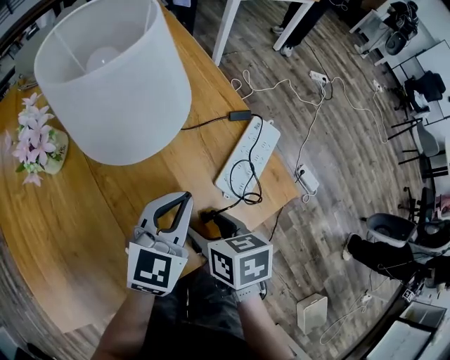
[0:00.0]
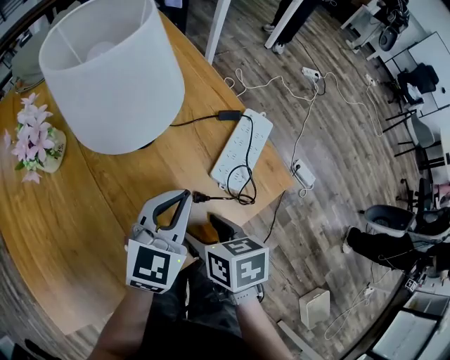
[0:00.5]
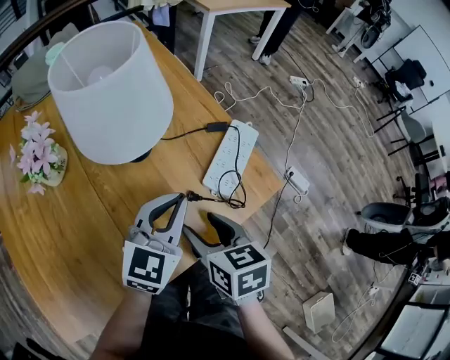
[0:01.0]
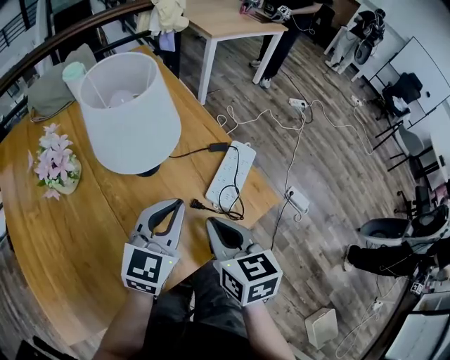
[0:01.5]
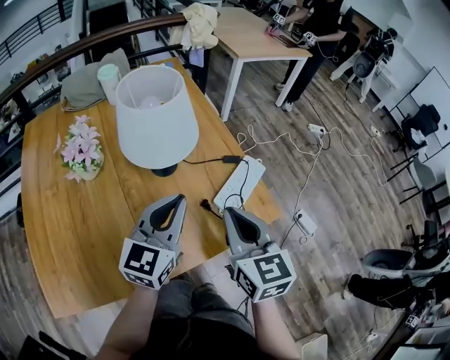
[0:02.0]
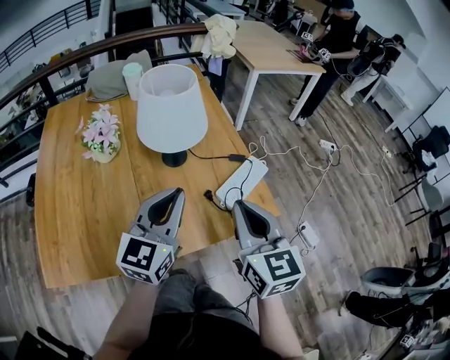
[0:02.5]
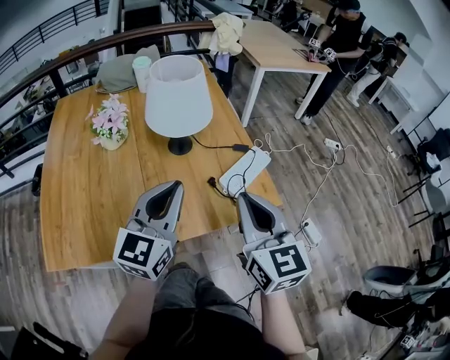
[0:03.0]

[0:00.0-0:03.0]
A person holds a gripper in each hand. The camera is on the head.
0:00.0 to 0:01.5: The right gripper shifts some 10 cm upward, swivels some 30 degrees, and closes. Meanwhile the left gripper goes roughly 5 cm upward.
0:01.5 to 0:03.0: Both grippers travel together upward and backward, some 15 cm. The right gripper rotates roughly 30 degrees. The left gripper swivels approximately 20 degrees.

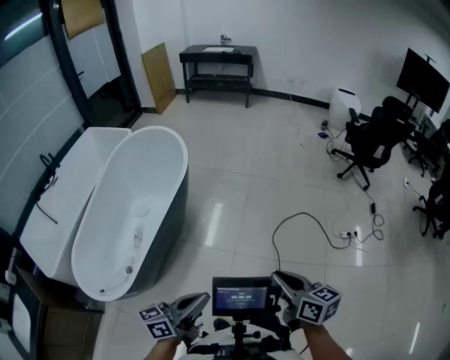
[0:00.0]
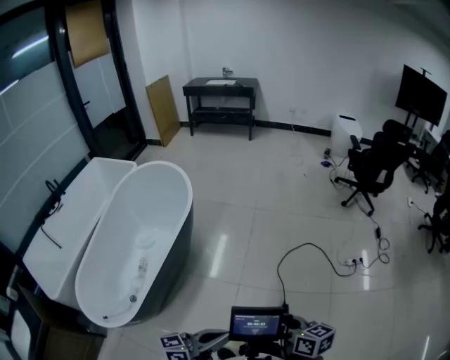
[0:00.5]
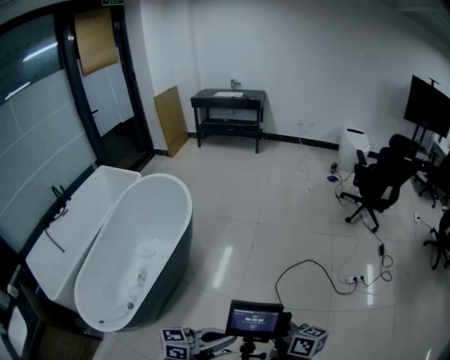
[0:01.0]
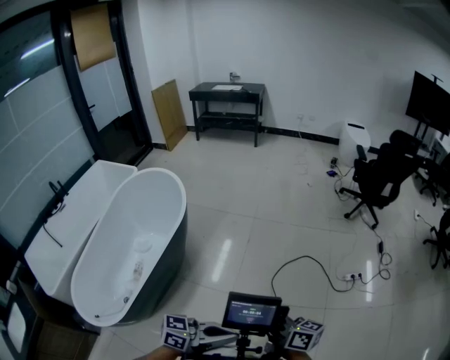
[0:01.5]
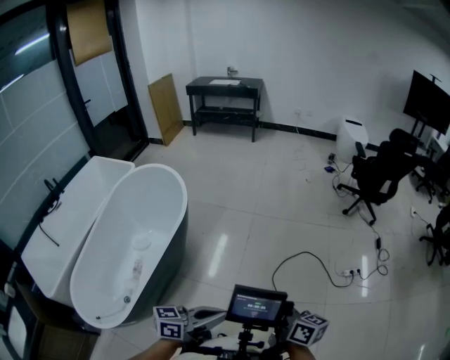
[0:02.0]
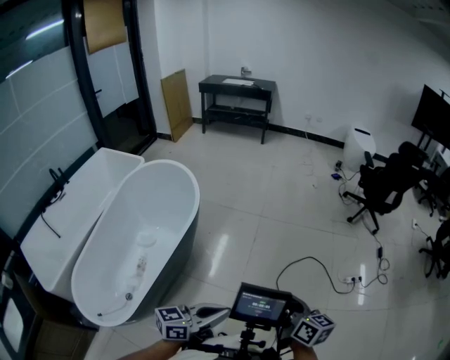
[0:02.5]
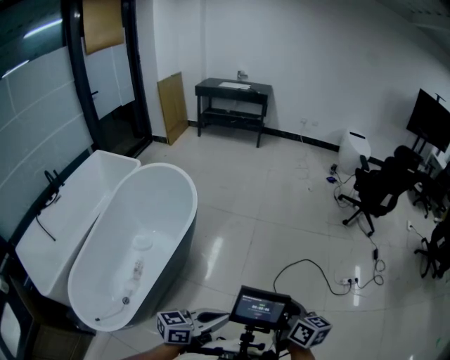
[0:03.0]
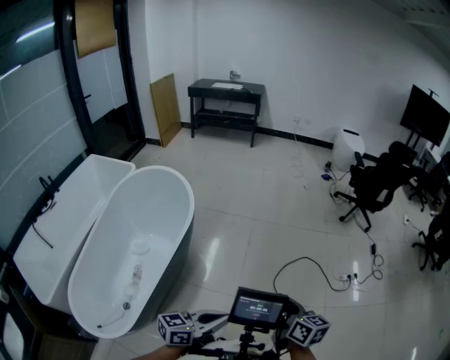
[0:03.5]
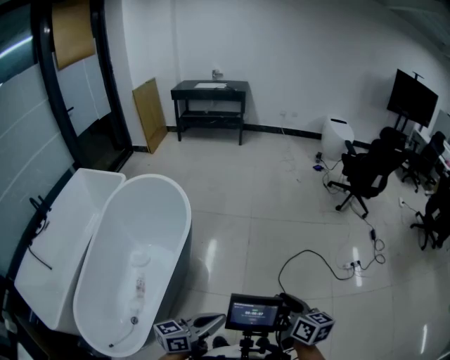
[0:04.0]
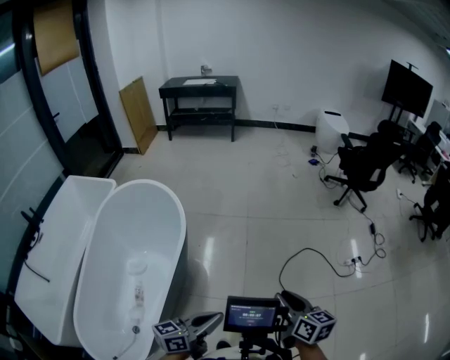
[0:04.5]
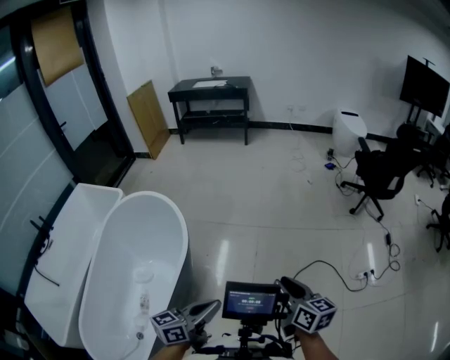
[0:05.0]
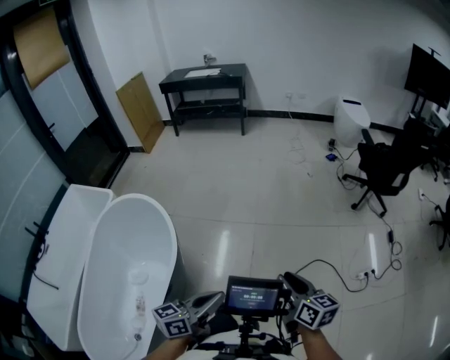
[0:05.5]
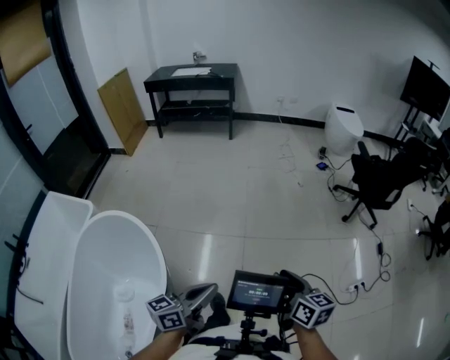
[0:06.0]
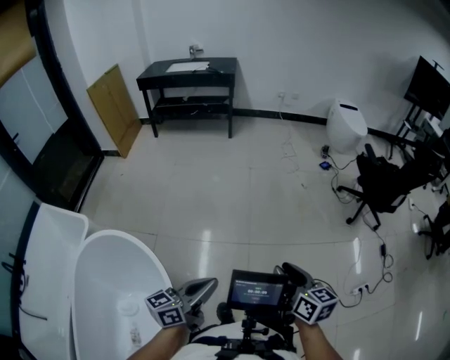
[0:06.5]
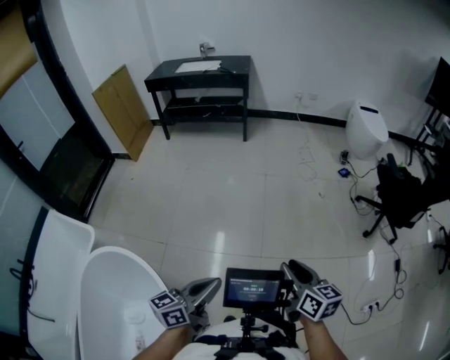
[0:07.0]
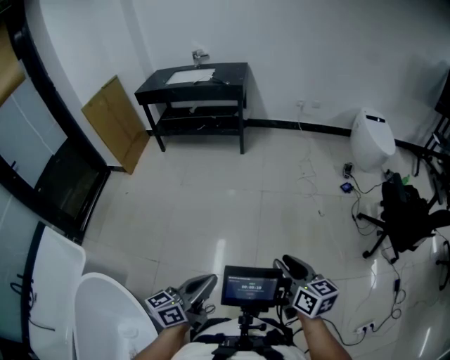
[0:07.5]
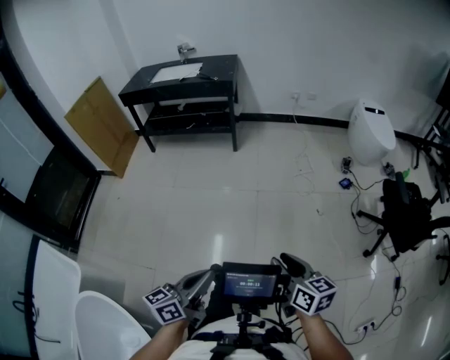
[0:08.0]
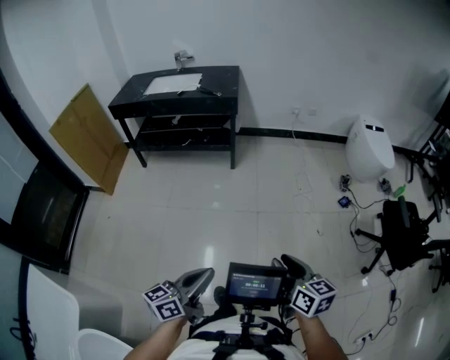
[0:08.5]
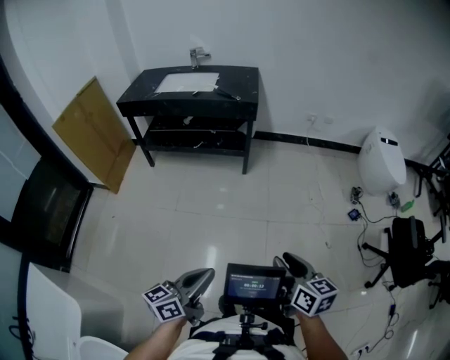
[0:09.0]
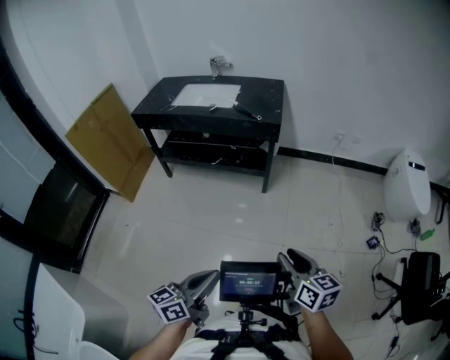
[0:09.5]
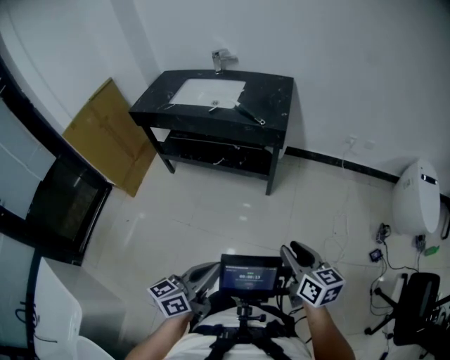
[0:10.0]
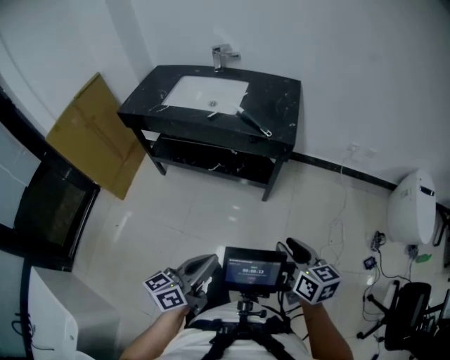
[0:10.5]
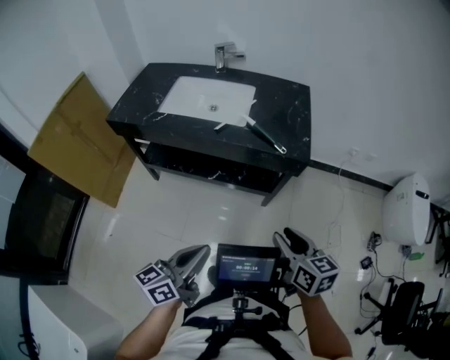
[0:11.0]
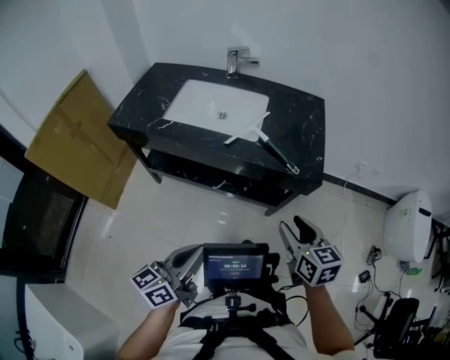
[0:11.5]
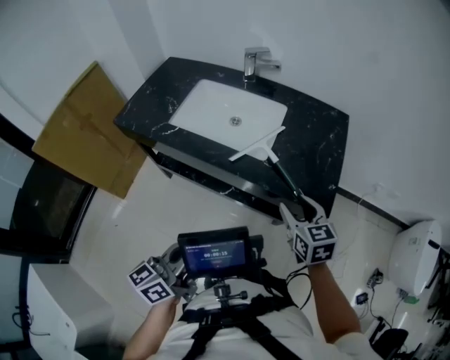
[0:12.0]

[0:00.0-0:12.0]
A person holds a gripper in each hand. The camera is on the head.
0:00.0 to 0:02.0: The right gripper moves approximately 10 cm. The left gripper changes place by about 15 cm.
0:02.0 to 0:04.0: The right gripper travels to the left by some 10 cm, changes its angle by roughly 20 degrees, and opens up; the left gripper goes some 15 cm to the left.
0:04.0 to 0:06.0: The pair of grippers is taken forward, about 50 cm.
0:06.0 to 0:08.0: The two grippers travel together, forward, about 60 cm.
0:08.0 to 0:10.0: The two grippers travel together, forward, roughly 60 cm.
0:10.0 to 0:12.0: Both grippers are carried forward, roughly 50 cm. The right gripper rotates some 30 degrees.

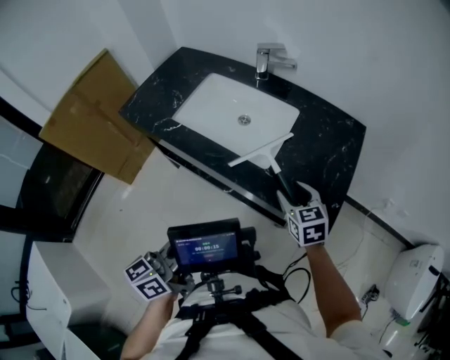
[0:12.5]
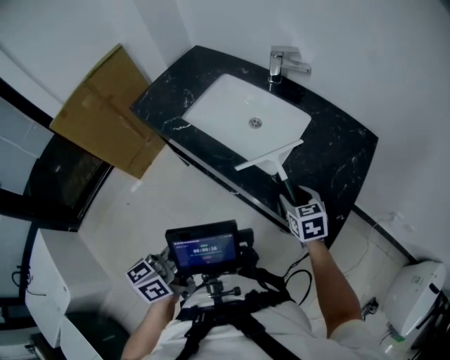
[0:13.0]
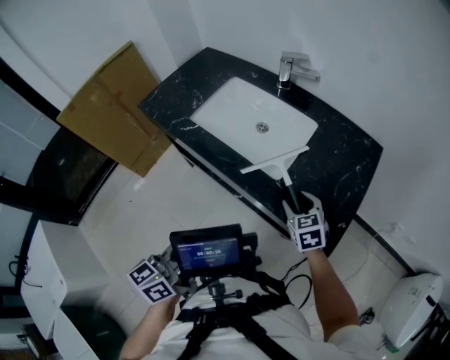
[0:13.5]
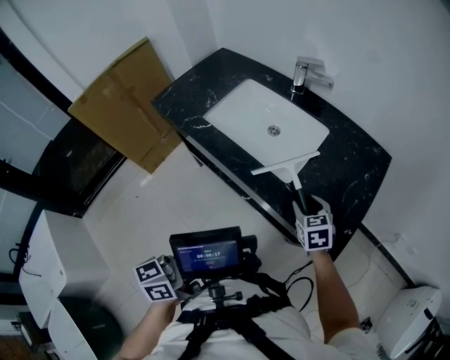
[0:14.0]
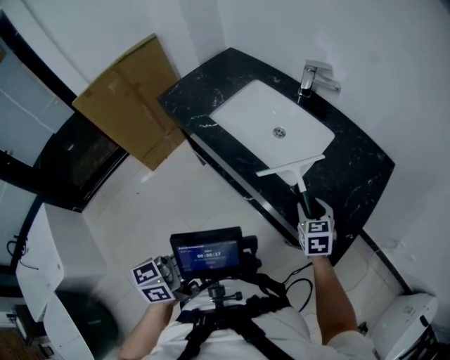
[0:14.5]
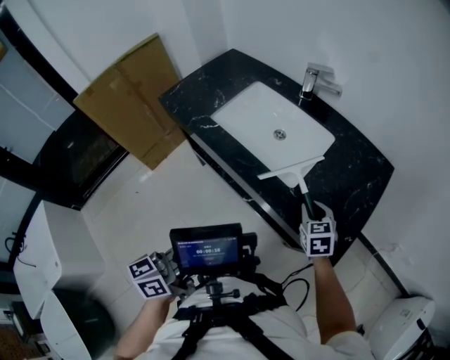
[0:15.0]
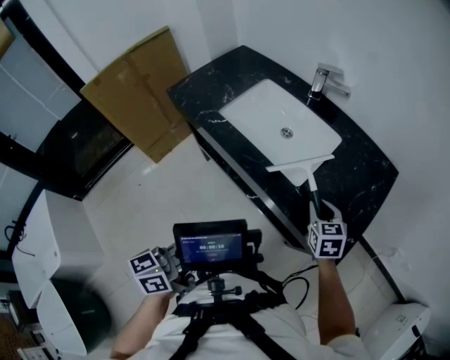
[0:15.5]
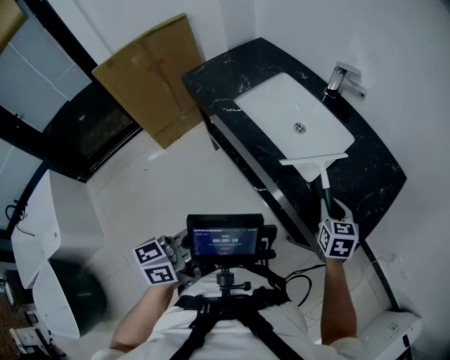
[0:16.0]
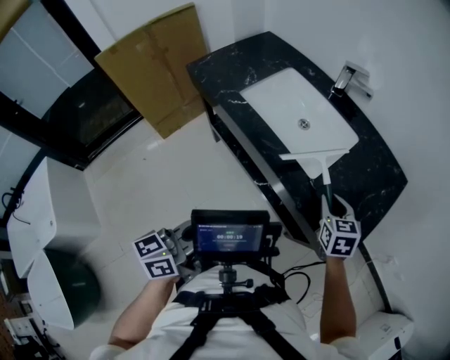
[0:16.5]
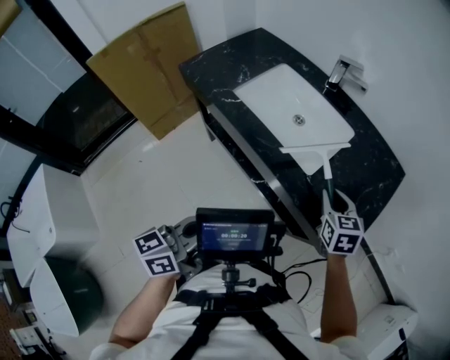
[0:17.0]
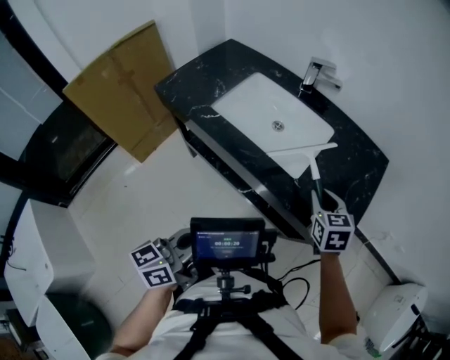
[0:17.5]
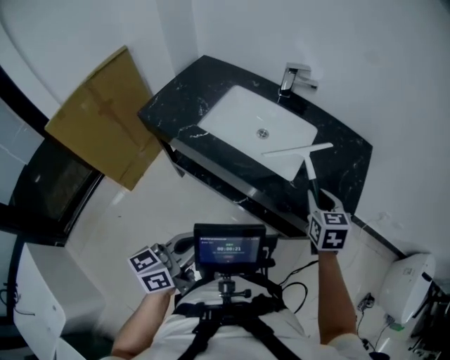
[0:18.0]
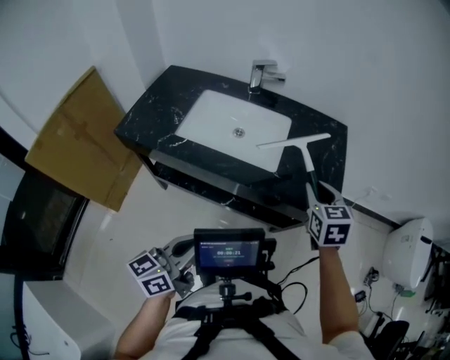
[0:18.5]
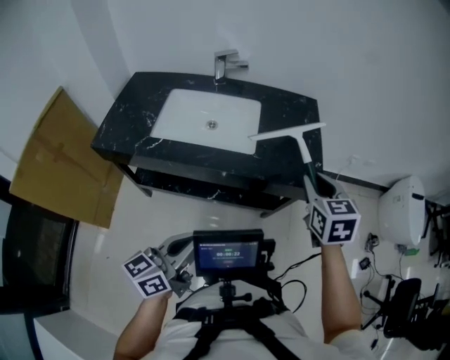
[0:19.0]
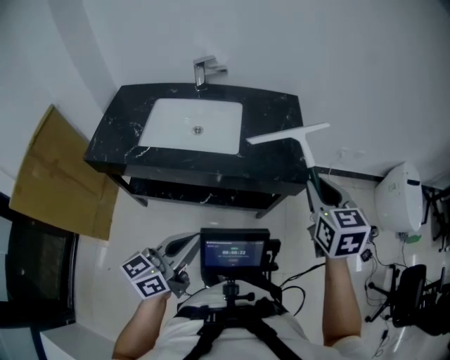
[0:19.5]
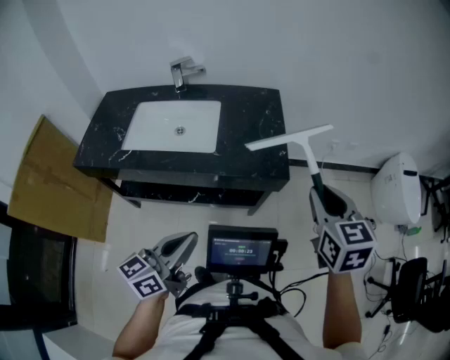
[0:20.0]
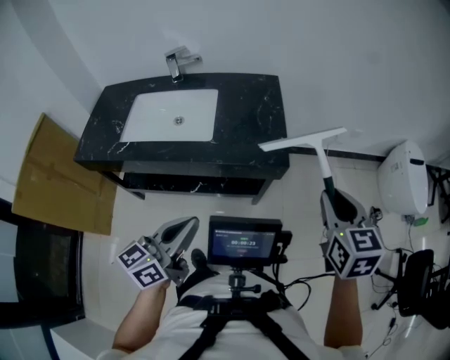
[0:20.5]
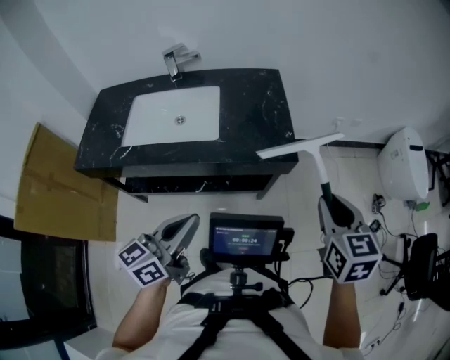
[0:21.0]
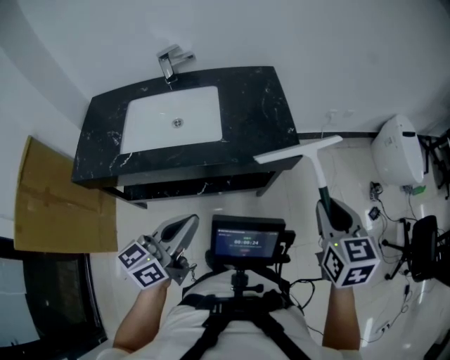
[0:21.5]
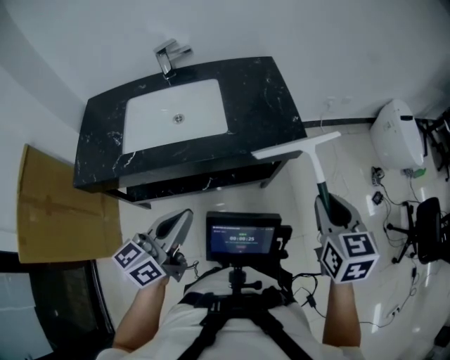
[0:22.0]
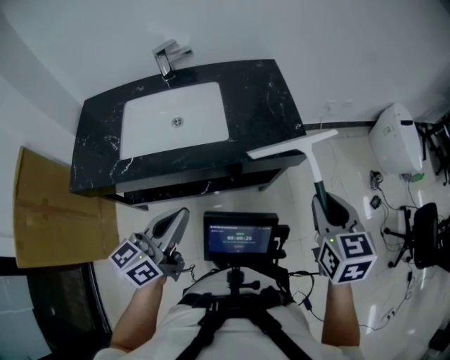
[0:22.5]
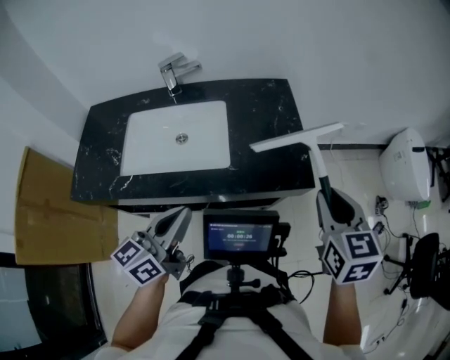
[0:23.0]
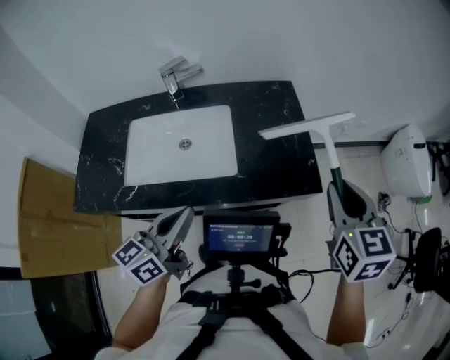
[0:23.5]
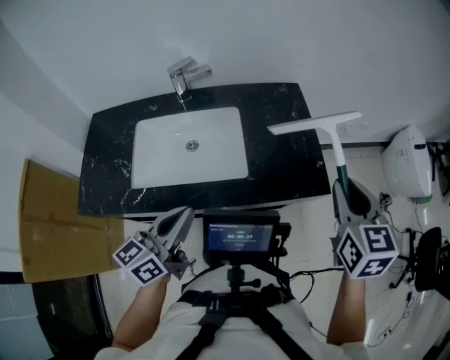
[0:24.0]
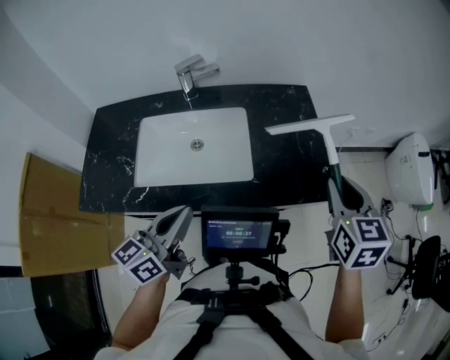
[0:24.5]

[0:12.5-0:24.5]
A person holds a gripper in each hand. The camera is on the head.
0:12.5 to 0:14.5: The right gripper ends up approximately 5 cm from where it was.
0:14.5 to 0:16.5: The right gripper closes its fingers.
0:16.5 to 0:18.5: The right gripper travels upward by roughly 10 cm, and changes its angle by roughly 30 degrees, while the left gripper moves about 10 cm, and turns by some 30 degrees.
0:18.5 to 0:20.5: The right gripper is displaced to the right and backward by some 30 cm; the left gripper travels to the right by about 15 cm.
0:20.5 to 0:22.5: The left gripper travels to the left by roughly 15 cm, while the right gripper shifts approximately 15 cm to the left and backward.
0:22.5 to 0:24.5: The grippers both shift forward and to the left by roughly 15 cm.
